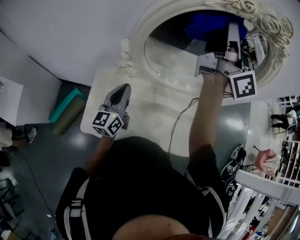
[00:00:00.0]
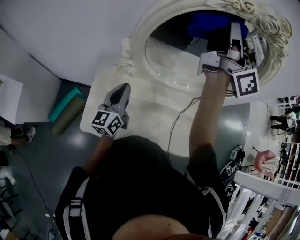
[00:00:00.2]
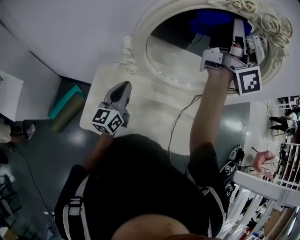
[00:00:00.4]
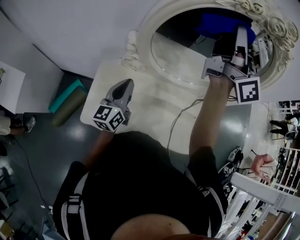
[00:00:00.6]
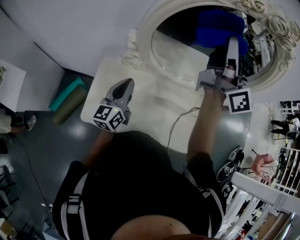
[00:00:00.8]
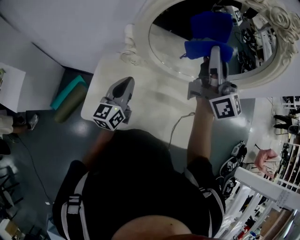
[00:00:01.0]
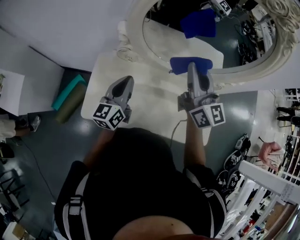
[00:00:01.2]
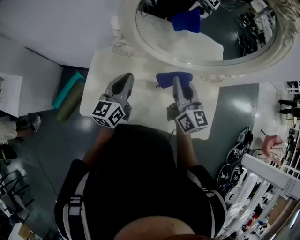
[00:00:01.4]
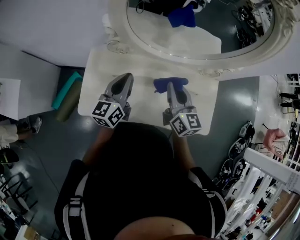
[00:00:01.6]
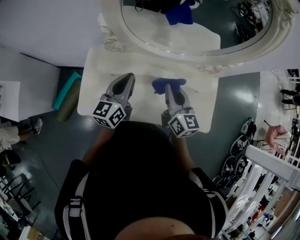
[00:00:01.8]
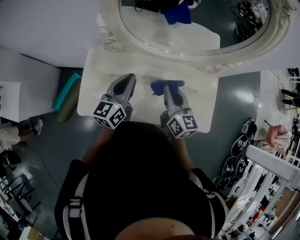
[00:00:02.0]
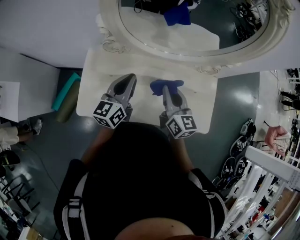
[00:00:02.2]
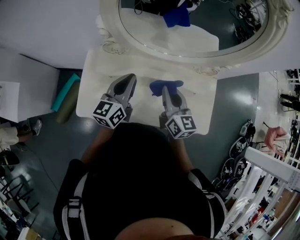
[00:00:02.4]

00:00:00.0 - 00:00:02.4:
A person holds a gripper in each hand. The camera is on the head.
00:00:00.0 - 00:00:01.2: The right gripper shifts approximately 20 cm downward and backward, and swivels approximately 30 degrees.
00:00:01.2 - 00:00:02.4: The left gripper goes approximately 10 cm to the right, while the right gripper shifts about 20 cm downward and backward, and turns by roughly 20 degrees.

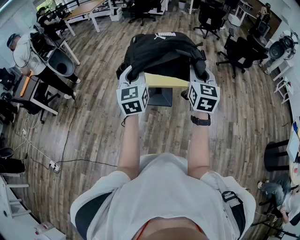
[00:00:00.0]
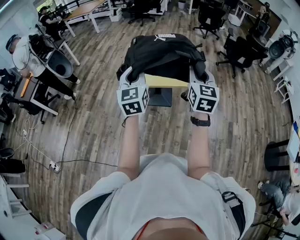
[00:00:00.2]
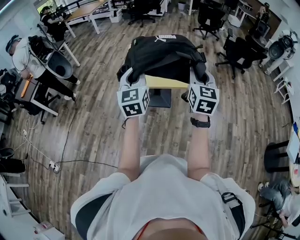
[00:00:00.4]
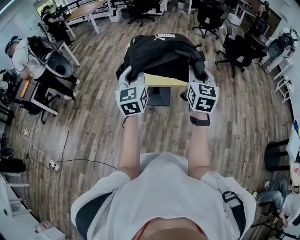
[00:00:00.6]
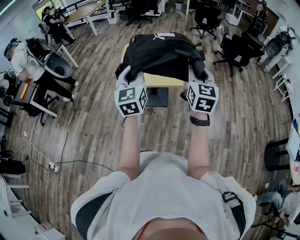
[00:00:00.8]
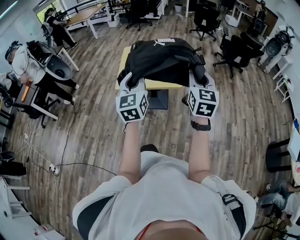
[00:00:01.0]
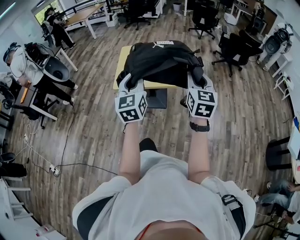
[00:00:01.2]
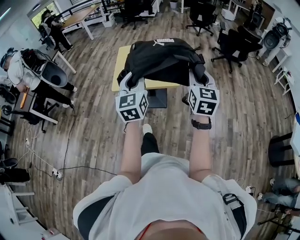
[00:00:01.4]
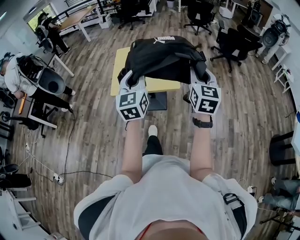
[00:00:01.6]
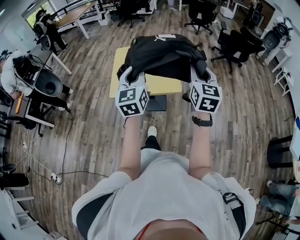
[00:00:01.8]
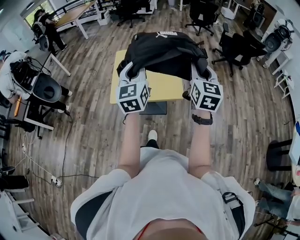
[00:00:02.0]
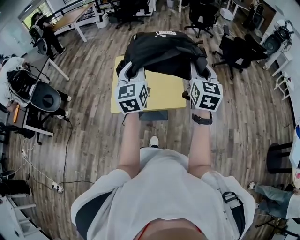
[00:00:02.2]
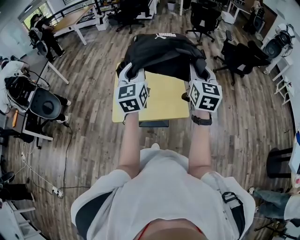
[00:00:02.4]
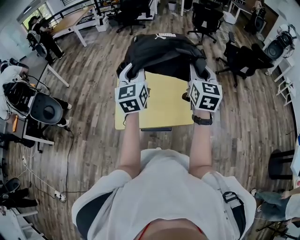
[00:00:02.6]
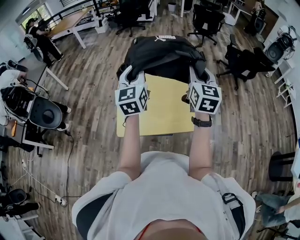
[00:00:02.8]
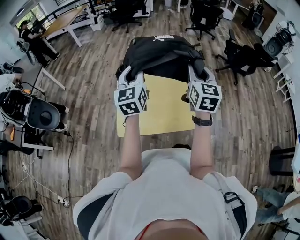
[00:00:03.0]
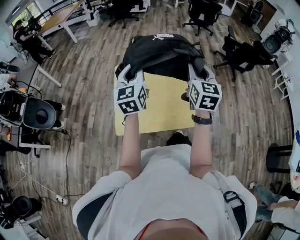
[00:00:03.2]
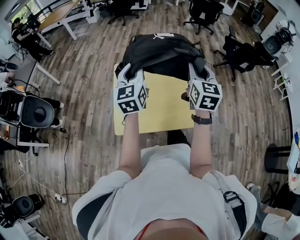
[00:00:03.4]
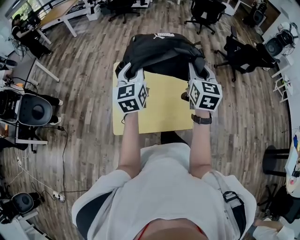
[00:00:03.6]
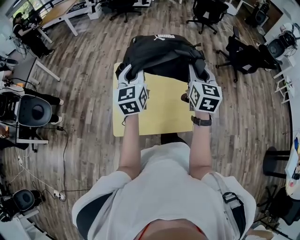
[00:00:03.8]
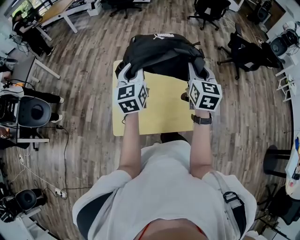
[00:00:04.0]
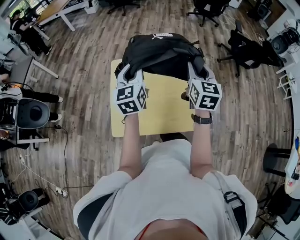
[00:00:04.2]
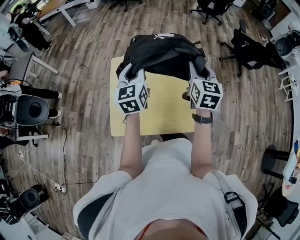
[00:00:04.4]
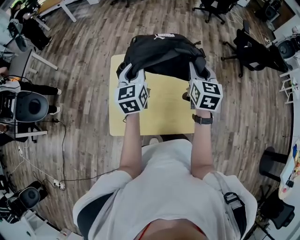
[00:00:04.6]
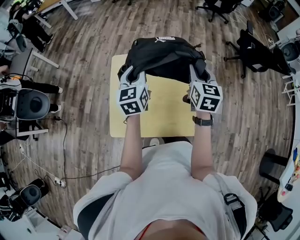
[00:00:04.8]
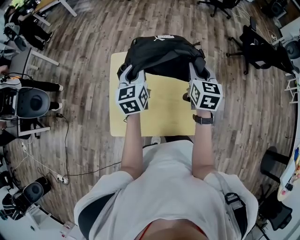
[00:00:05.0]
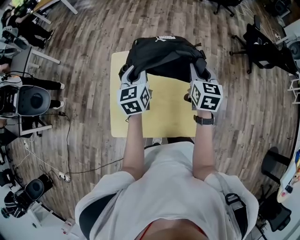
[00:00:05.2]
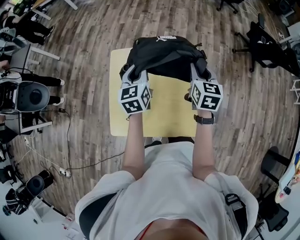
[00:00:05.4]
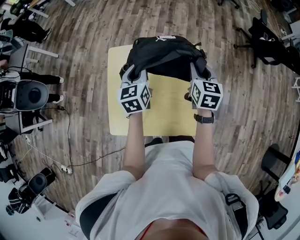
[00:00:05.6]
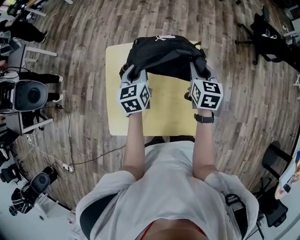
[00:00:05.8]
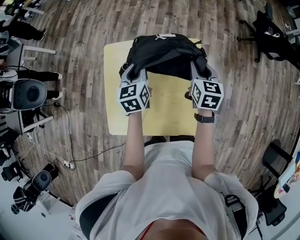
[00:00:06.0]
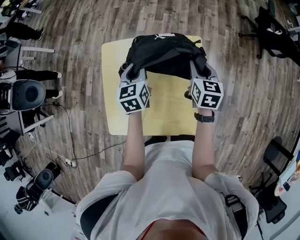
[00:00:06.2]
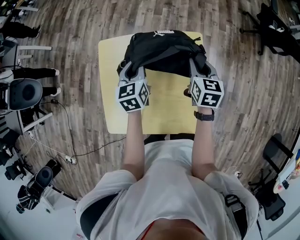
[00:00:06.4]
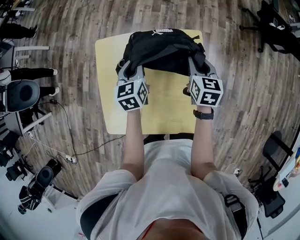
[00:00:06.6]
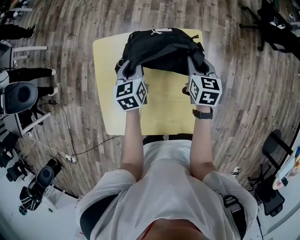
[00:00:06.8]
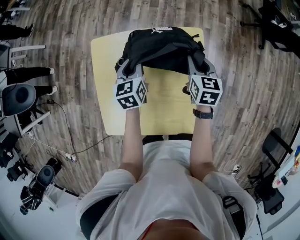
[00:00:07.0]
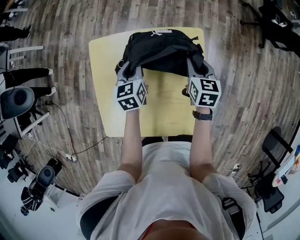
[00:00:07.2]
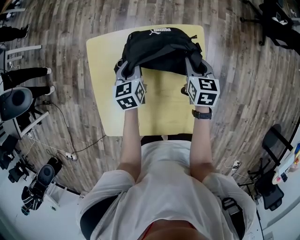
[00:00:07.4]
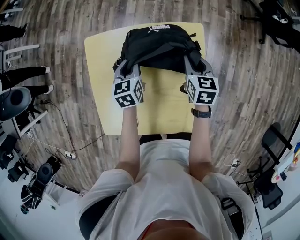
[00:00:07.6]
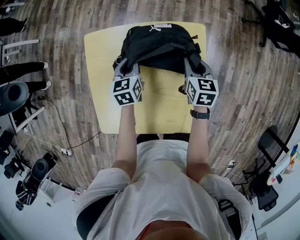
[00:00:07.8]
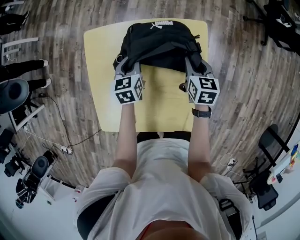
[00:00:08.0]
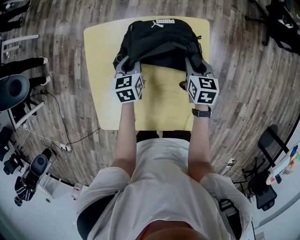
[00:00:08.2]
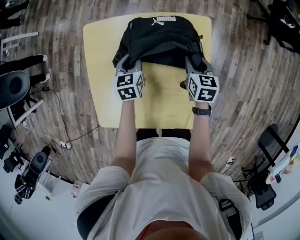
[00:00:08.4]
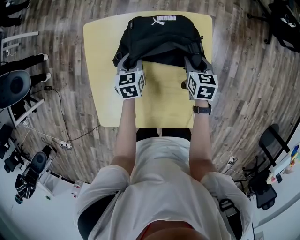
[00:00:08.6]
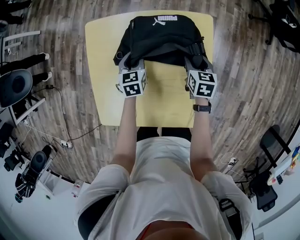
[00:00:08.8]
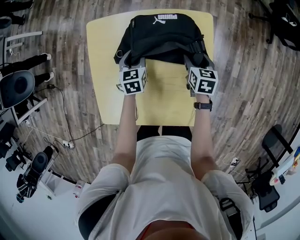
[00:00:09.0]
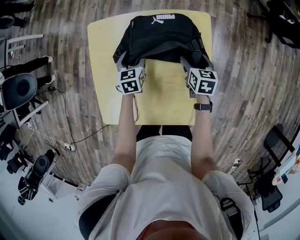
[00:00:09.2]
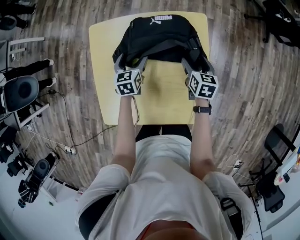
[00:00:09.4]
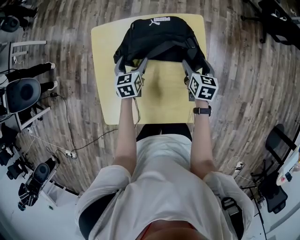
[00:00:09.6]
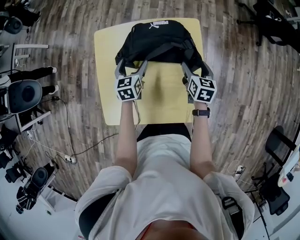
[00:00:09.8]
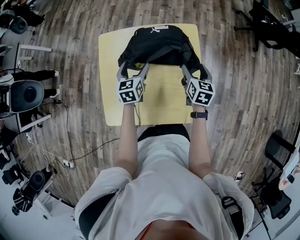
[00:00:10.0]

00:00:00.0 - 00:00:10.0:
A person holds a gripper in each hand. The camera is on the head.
00:00:00.0 - 00:00:01.4: The grippers both shift to the right by some 10 cm.
00:00:01.4 - 00:00:02.8: Both grippers travel together forward, roughly 40 cm.
00:00:02.8 - 00:00:04.2: The grippers both shift forward and downward by approximately 15 cm.
00:00:04.2 - 00:00:05.8: The grippers both shift downward and forward by some 20 cm. The left gripper swivels approximately 20 degrees.
00:00:05.8 - 00:00:07.2: The two grippers go approximately 10 cm downward.
00:00:07.2 - 00:00:08.6: The grippers both shift downward by roughly 10 cm.
00:00:08.6 - 00:00:10.0: Both grippers move upward and backward, roughly 10 cm. The right gripper opens its fingers, while the left gripper opens its fingers.

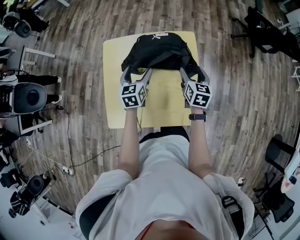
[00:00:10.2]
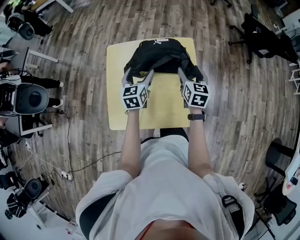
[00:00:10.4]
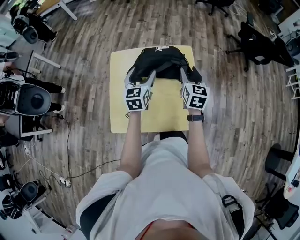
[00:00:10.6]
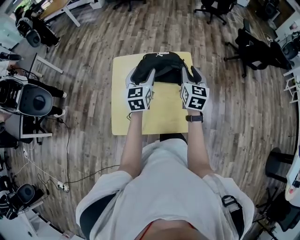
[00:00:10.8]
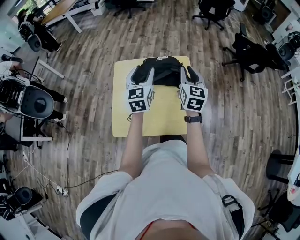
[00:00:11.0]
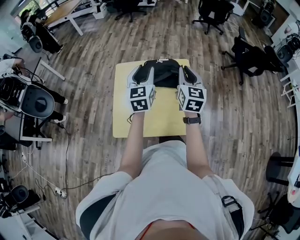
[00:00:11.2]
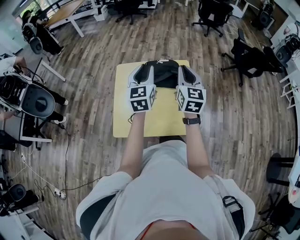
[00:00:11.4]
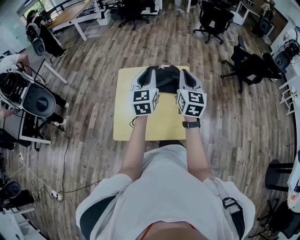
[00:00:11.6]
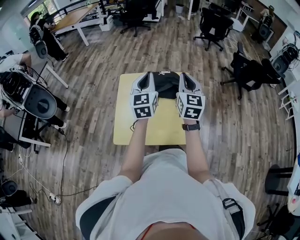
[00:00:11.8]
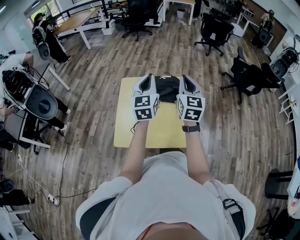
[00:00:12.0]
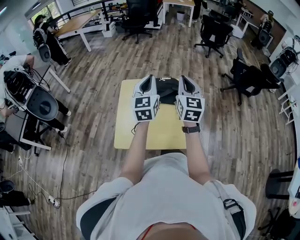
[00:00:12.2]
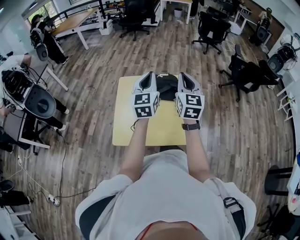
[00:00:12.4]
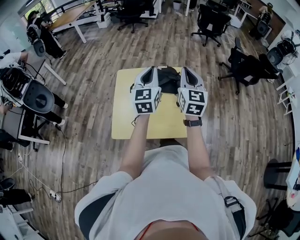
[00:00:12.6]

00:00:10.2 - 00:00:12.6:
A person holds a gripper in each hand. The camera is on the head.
00:00:10.2 - 00:00:11.4: The two grippers go roughly 25 cm upward. The left gripper turns by approximately 20 degrees, and closes up. The right gripper turns by roughly 30 degrees, and closes.
00:00:11.4 - 00:00:12.6: The left gripper shifts by roughly 5 cm. The right gripper moves upward, approximately 5 cm.

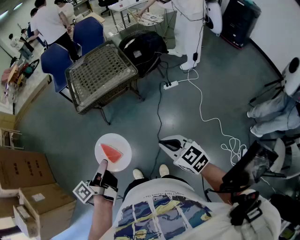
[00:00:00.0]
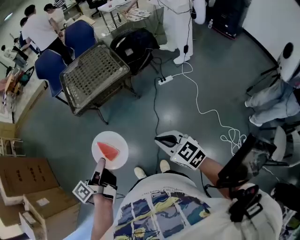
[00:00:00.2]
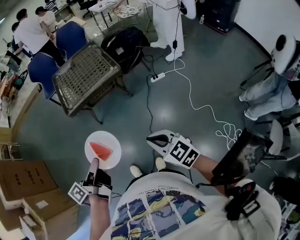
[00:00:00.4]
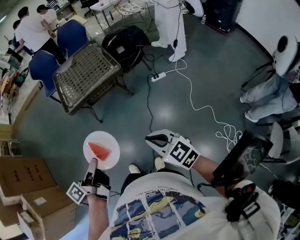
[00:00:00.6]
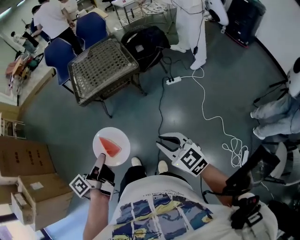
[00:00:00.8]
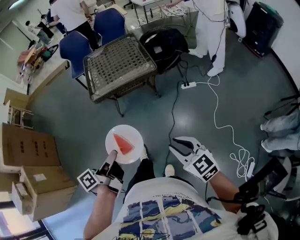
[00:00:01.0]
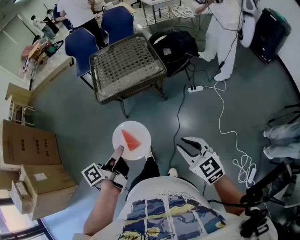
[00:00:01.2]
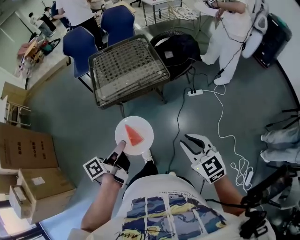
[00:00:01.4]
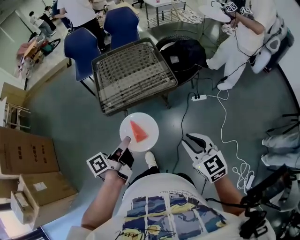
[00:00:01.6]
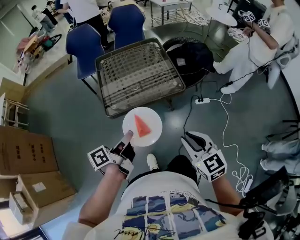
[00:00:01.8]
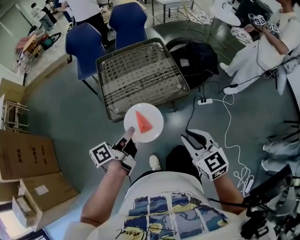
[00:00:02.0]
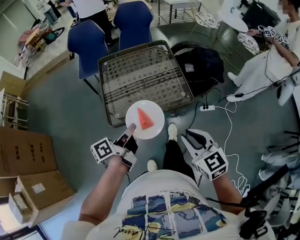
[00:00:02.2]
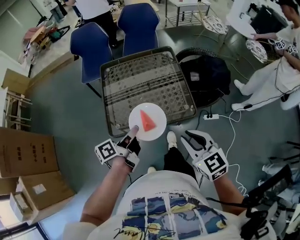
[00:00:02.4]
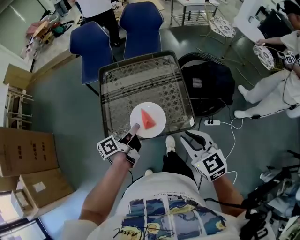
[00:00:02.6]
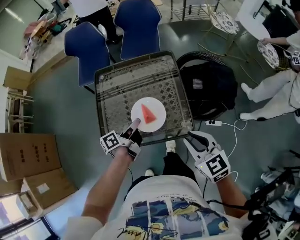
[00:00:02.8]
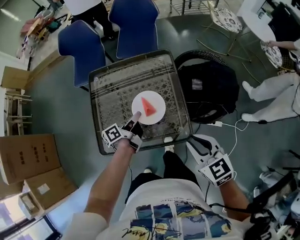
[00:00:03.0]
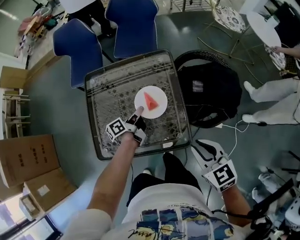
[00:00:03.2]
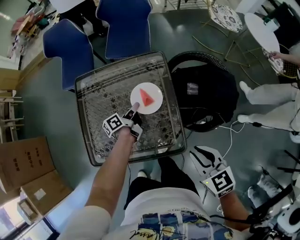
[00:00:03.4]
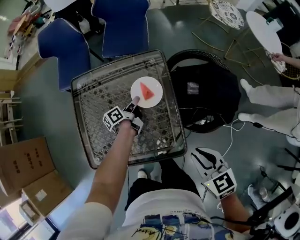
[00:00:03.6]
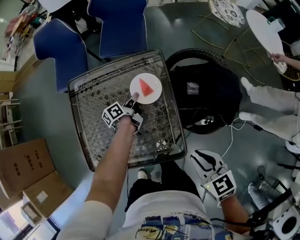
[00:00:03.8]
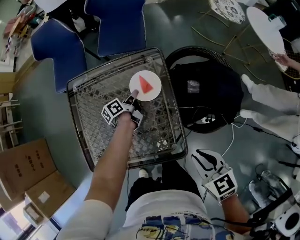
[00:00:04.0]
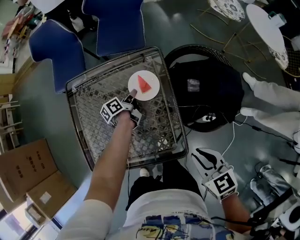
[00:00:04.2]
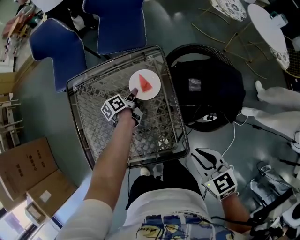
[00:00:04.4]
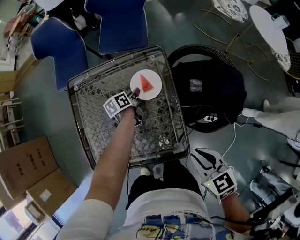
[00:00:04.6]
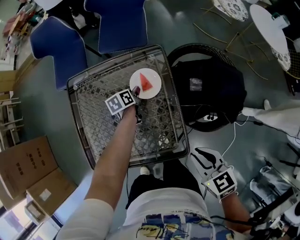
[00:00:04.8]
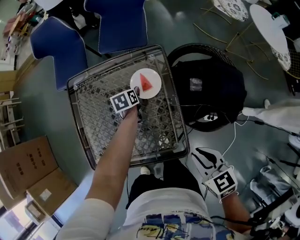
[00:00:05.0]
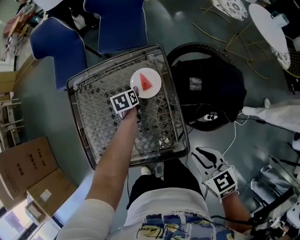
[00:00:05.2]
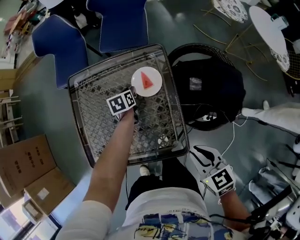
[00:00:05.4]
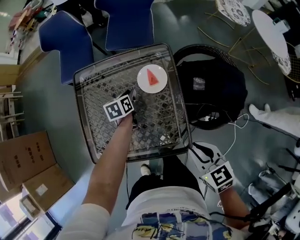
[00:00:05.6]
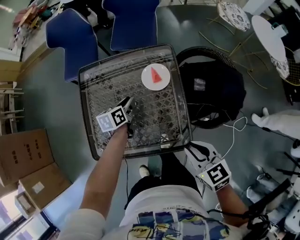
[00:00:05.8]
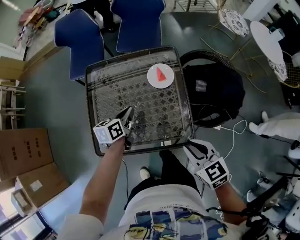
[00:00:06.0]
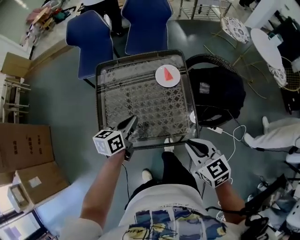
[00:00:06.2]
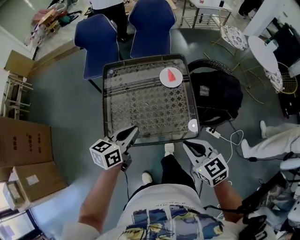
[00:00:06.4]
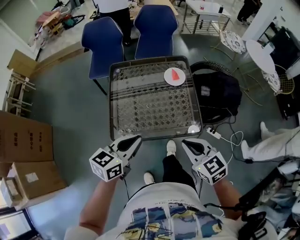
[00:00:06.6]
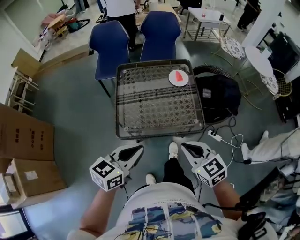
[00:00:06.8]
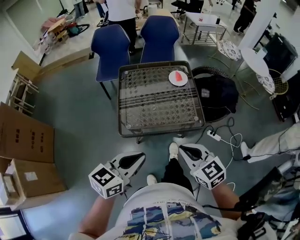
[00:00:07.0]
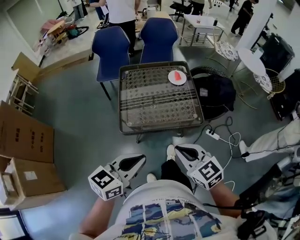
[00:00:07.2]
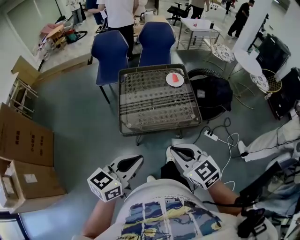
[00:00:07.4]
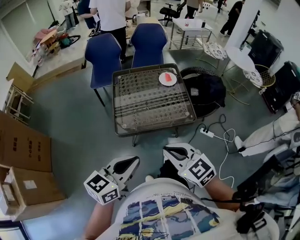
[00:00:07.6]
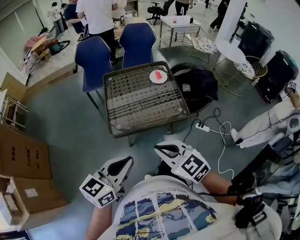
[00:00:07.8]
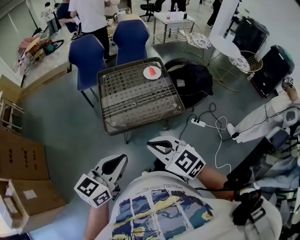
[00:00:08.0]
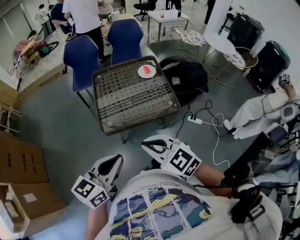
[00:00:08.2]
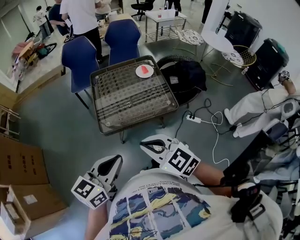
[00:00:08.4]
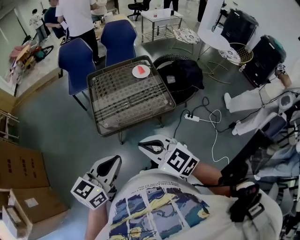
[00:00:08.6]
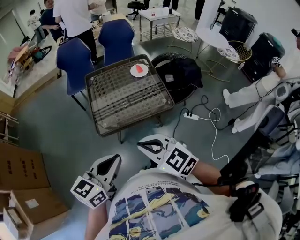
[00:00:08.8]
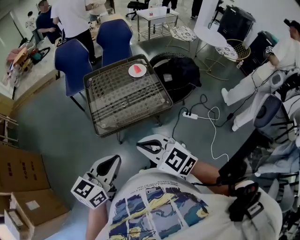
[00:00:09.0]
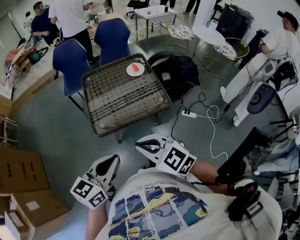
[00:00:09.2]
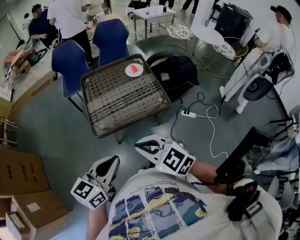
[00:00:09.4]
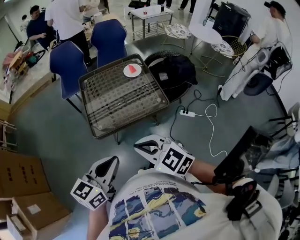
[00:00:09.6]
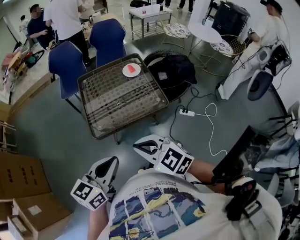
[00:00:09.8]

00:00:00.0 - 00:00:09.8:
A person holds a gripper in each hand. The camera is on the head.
00:00:00.0 - 00:00:01.4: The grippers both shift forward by approximately 10 cm.
00:00:01.4 - 00:00:02.8: The two grippers travel together, forward, approximately 50 cm.
00:00:02.8 - 00:00:04.2: The left gripper goes roughly 35 cm forward and downward. The right gripper shifts about 15 cm forward, to the right and downward.
00:00:04.2 - 00:00:05.6: The left gripper swivels approximately 40 degrees, and opens up.
00:00:05.6 - 00:00:07.0: The right gripper travels backward, to the left and upward by roughly 30 cm; the left gripper goes approximately 60 cm backward and upward, swivels approximately 50 degrees, and closes up.
00:00:07.0 - 00:00:08.4: The right gripper travels backward and to the left by some 10 cm. The left gripper travels backward by approximately 10 cm.
00:00:08.4 - 00:00:09.8: There are only small adjustments of the grippers.
